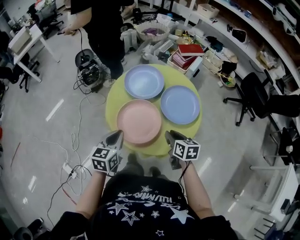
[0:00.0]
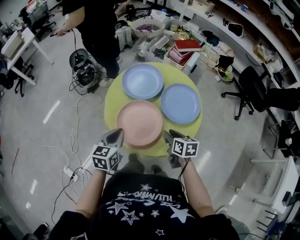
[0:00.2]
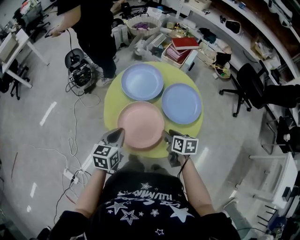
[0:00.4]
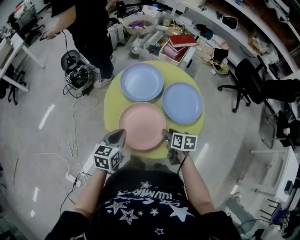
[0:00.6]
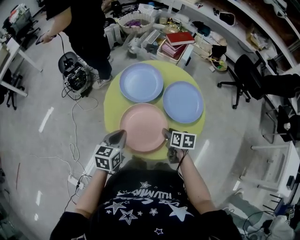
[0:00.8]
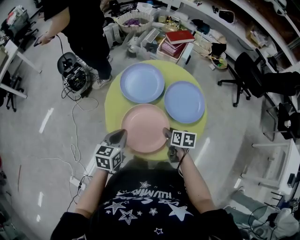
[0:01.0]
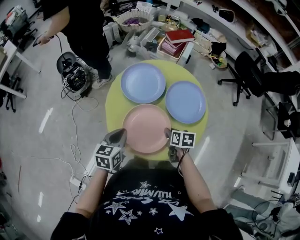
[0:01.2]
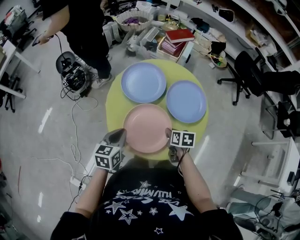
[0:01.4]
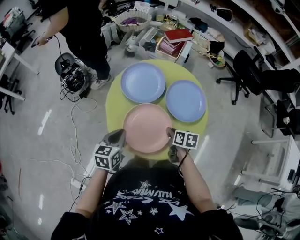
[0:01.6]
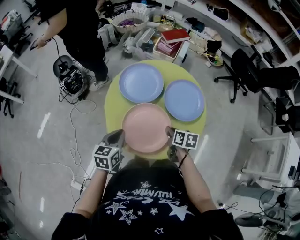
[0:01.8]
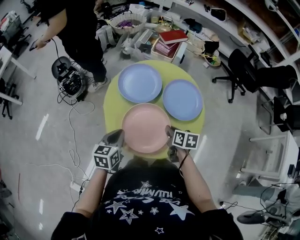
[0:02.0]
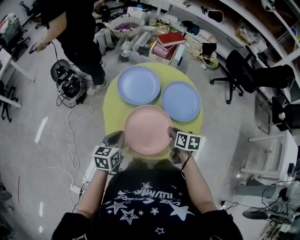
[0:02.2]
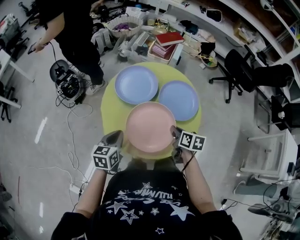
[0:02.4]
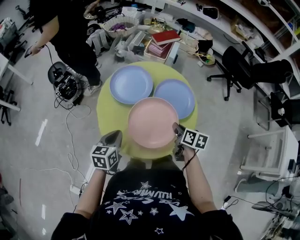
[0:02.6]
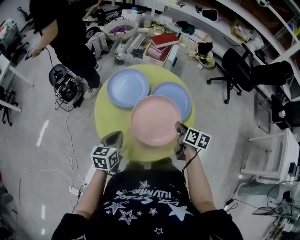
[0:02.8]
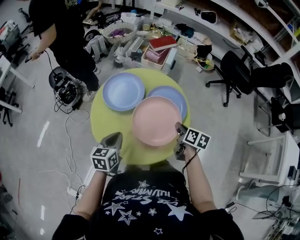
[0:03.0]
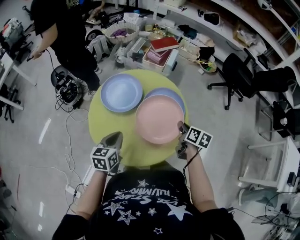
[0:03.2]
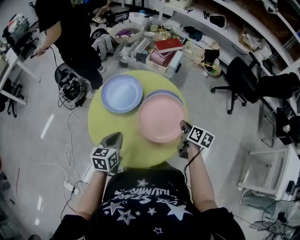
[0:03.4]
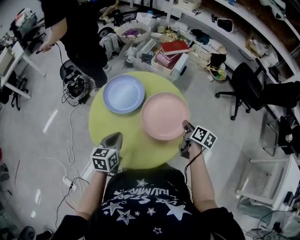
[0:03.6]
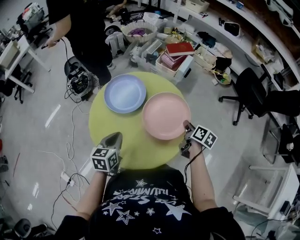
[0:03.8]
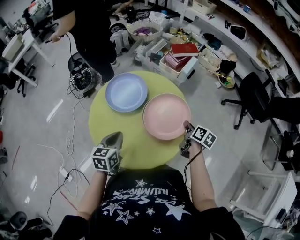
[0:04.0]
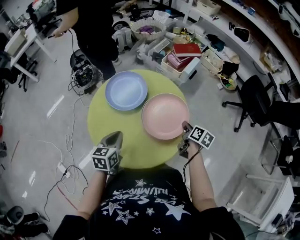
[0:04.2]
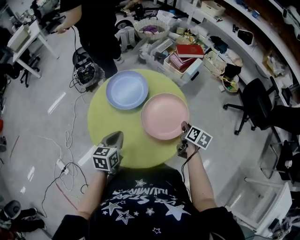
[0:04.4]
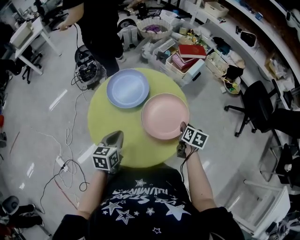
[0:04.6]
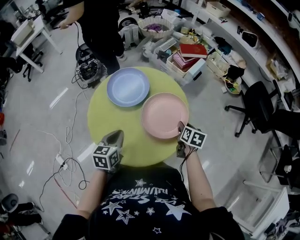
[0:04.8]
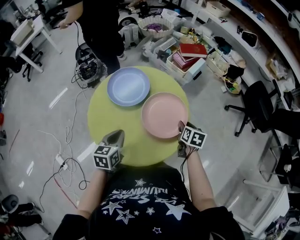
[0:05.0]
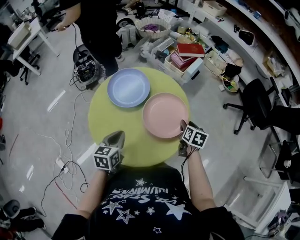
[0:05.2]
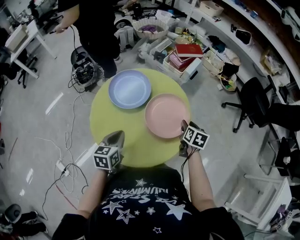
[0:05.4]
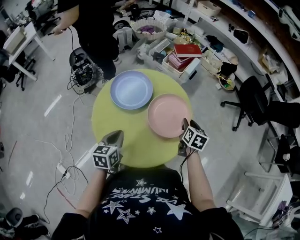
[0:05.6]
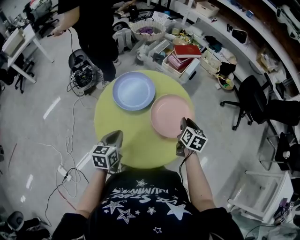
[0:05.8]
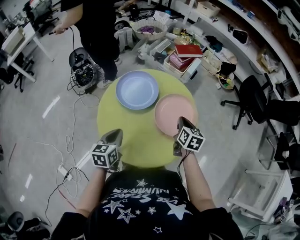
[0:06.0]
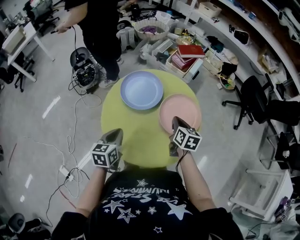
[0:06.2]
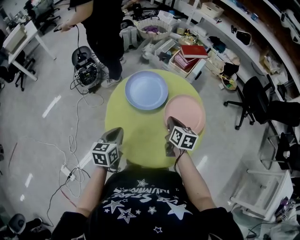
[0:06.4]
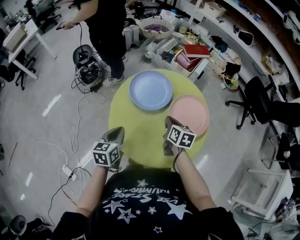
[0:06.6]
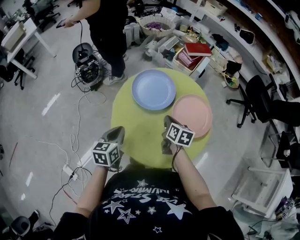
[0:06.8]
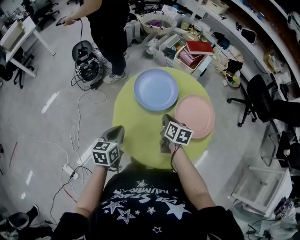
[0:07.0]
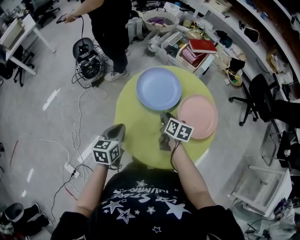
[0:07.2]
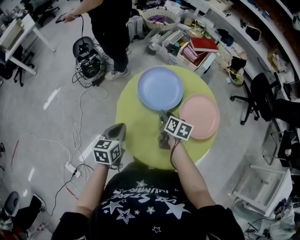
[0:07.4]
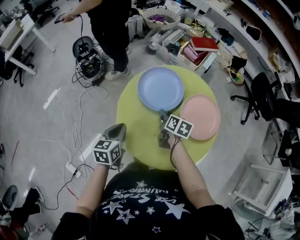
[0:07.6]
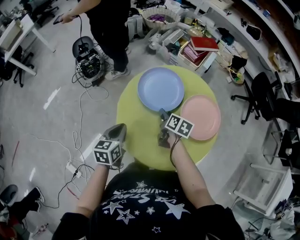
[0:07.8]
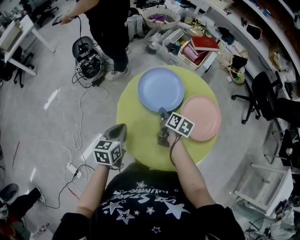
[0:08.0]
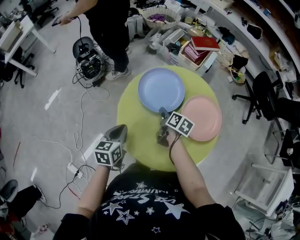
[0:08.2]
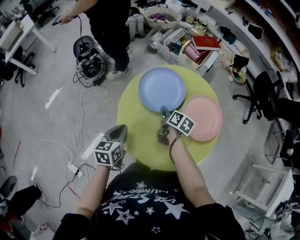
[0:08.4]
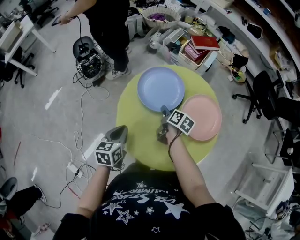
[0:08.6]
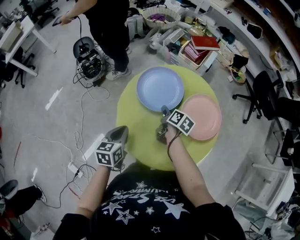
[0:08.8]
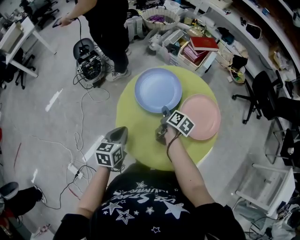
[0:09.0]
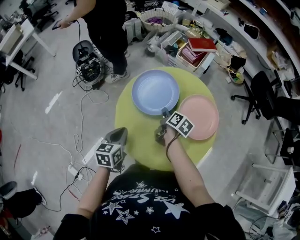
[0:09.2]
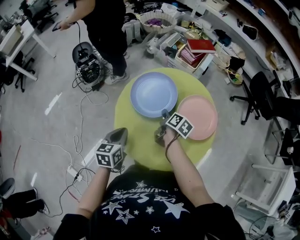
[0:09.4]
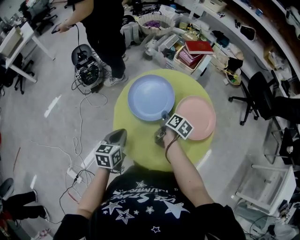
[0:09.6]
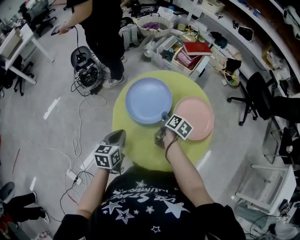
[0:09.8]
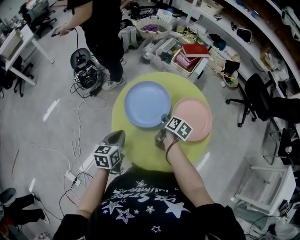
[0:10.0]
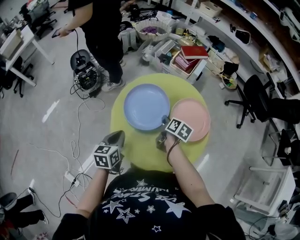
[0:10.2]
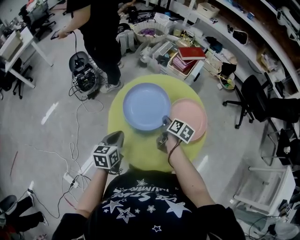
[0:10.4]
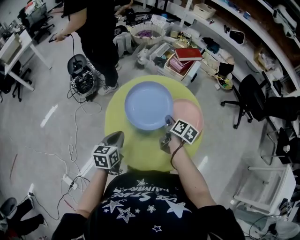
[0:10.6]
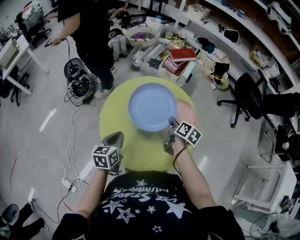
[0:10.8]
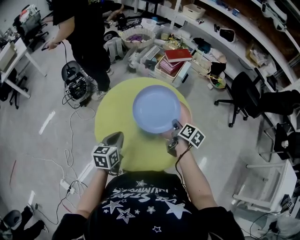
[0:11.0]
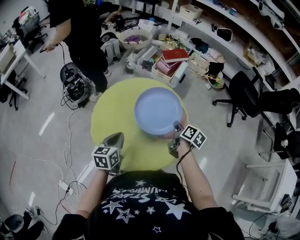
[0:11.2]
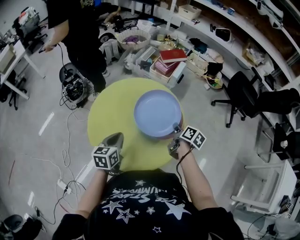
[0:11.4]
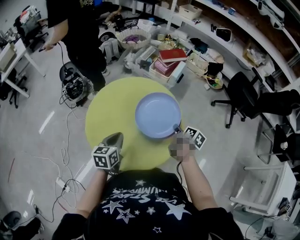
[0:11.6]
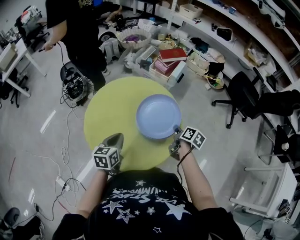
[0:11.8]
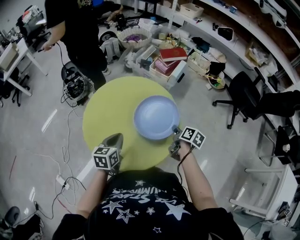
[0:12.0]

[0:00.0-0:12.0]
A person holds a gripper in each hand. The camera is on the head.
0:00.0 to 0:01.6: The left gripper travels forward and downward by approximately 10 cm; the right gripper moves downward, approximately 10 cm, and turns by about 20 degrees.
0:01.6 to 0:03.0: The right gripper heads to the right and upward, covering about 15 cm. The left gripper shifts approximately 10 cm to the right.
0:03.0 to 0:04.4: The right gripper travels forward and to the right by approximately 15 cm, while the left gripper travels to the right by roughly 5 cm.
0:04.4 to 0:06.0: The right gripper goes approximately 10 cm to the left and upward, and opens, then closes once more. Meanwhile the left gripper shifts approximately 10 cm to the left.
0:06.0 to 0:07.6: The left gripper travels to the left by some 10 cm. Meanwhile the right gripper shifts approximately 20 cm to the left, turns by approximately 20 degrees, and opens its fingers.
0:07.6 to 0:09.0: The grippers move only a little.
0:09.0 to 0:10.4: The right gripper moves to the right, about 5 cm.
0:10.4 to 0:12.0: The two grippers go about 20 cm to the right.

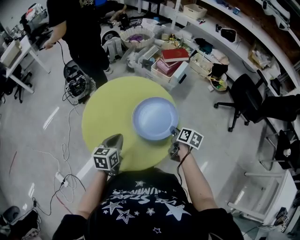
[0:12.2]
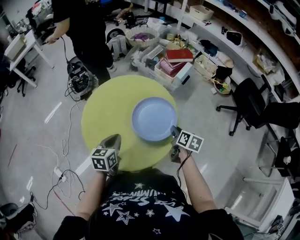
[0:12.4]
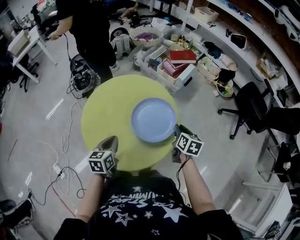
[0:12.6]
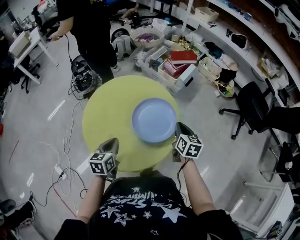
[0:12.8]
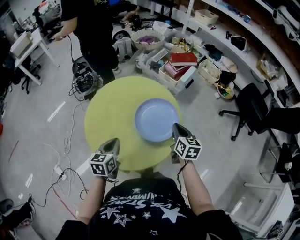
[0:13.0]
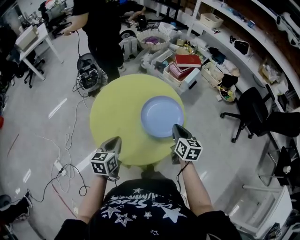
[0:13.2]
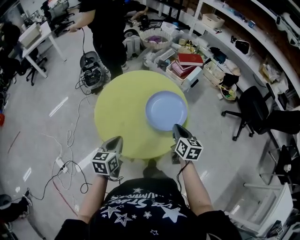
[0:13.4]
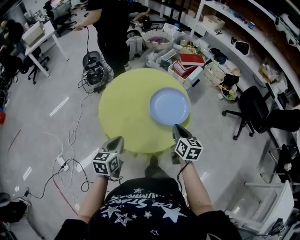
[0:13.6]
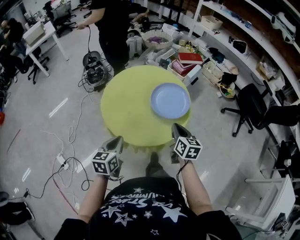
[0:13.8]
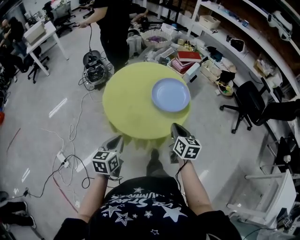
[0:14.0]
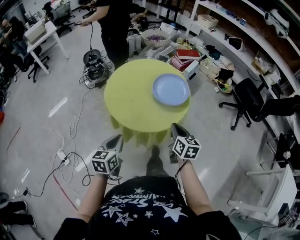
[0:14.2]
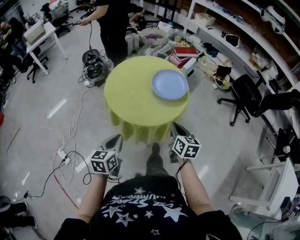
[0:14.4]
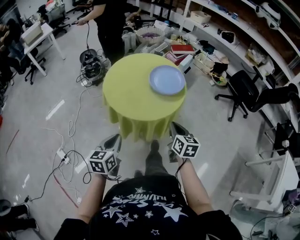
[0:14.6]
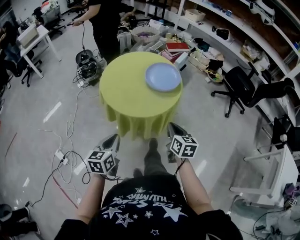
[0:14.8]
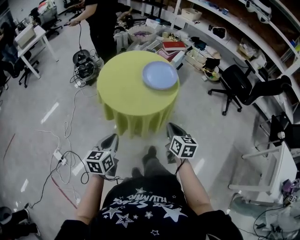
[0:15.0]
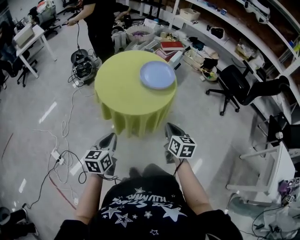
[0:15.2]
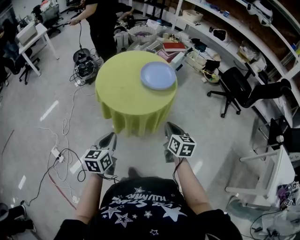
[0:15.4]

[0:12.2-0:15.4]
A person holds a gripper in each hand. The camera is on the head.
0:12.2 to 0:13.8: The left gripper moves backward and to the left, approximately 20 cm, while the right gripper goes some 20 cm backward, to the left and upward, and swivels approximately 40 degrees.
0:13.8 to 0:15.4: The two grippers go some 20 cm backward.

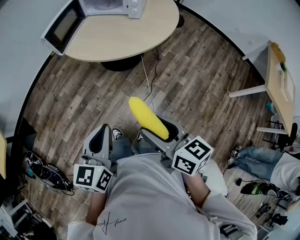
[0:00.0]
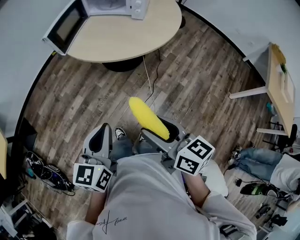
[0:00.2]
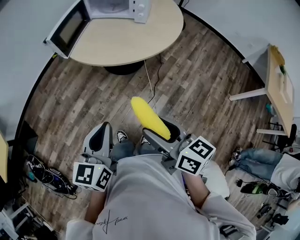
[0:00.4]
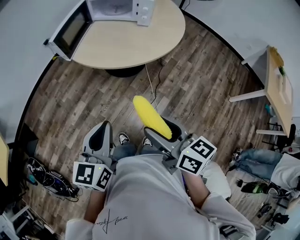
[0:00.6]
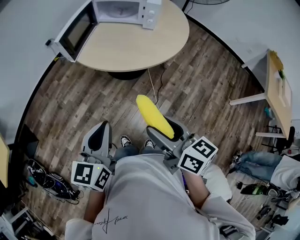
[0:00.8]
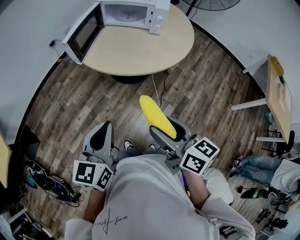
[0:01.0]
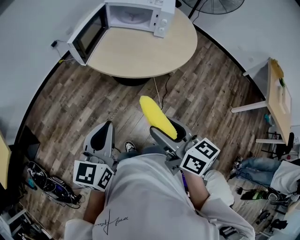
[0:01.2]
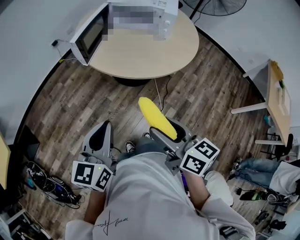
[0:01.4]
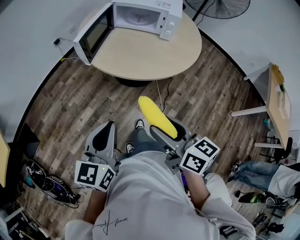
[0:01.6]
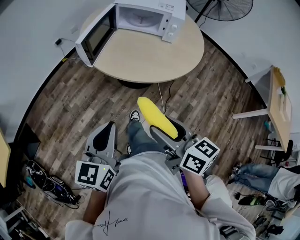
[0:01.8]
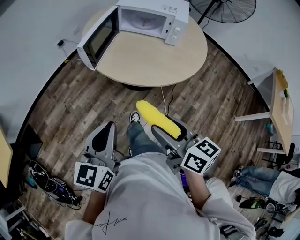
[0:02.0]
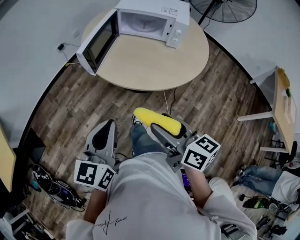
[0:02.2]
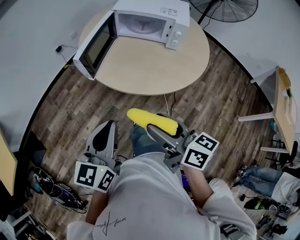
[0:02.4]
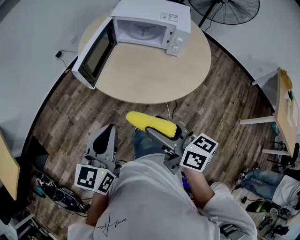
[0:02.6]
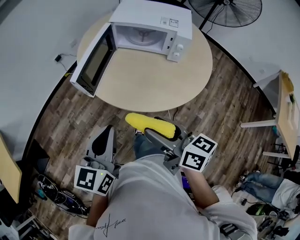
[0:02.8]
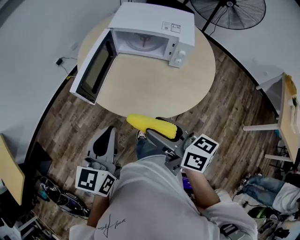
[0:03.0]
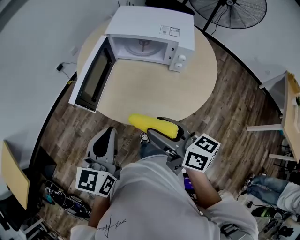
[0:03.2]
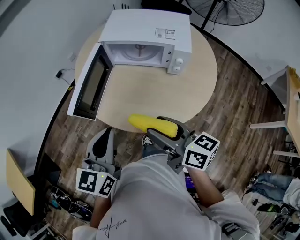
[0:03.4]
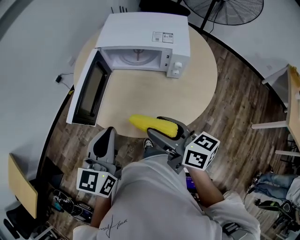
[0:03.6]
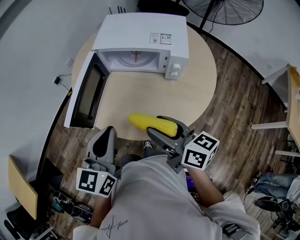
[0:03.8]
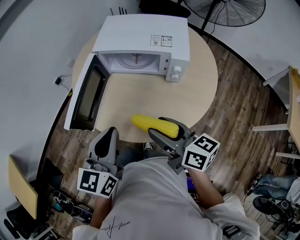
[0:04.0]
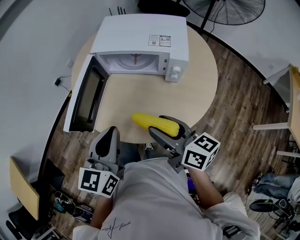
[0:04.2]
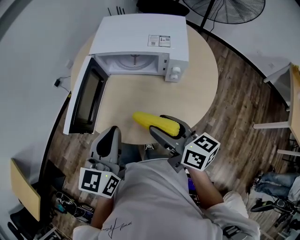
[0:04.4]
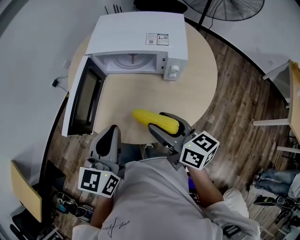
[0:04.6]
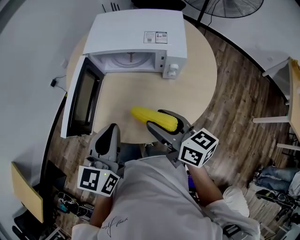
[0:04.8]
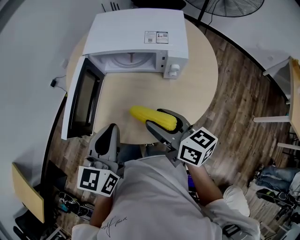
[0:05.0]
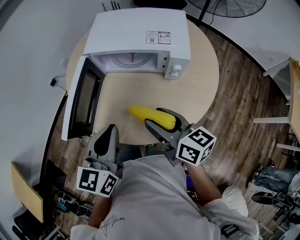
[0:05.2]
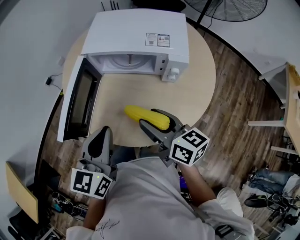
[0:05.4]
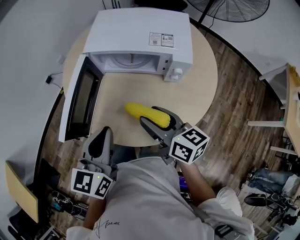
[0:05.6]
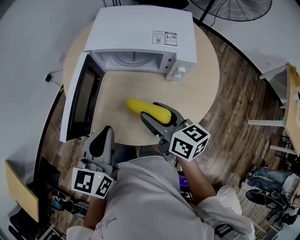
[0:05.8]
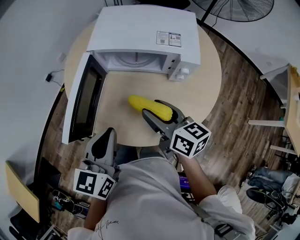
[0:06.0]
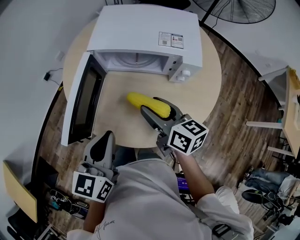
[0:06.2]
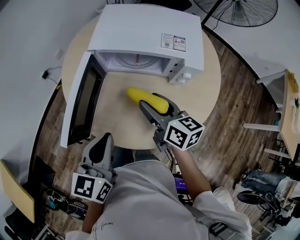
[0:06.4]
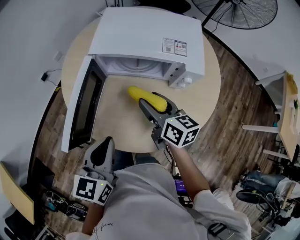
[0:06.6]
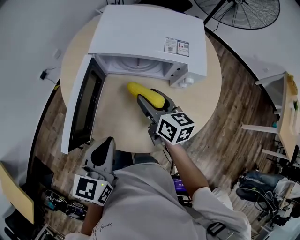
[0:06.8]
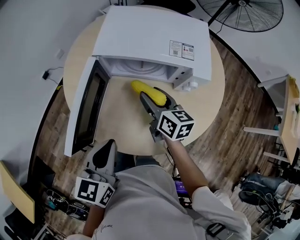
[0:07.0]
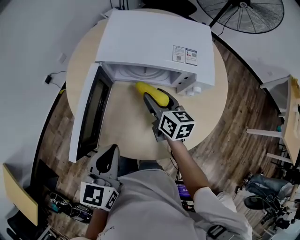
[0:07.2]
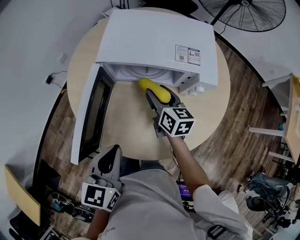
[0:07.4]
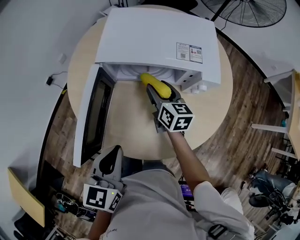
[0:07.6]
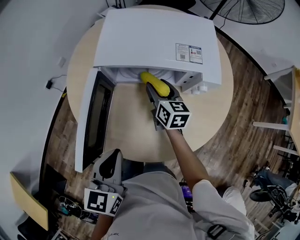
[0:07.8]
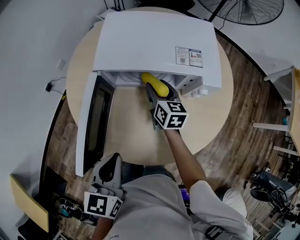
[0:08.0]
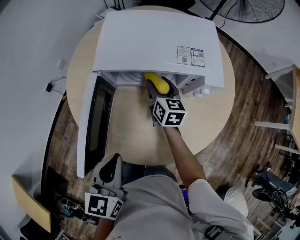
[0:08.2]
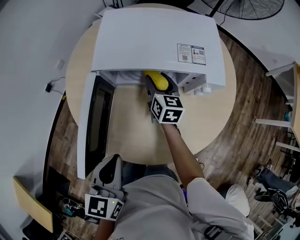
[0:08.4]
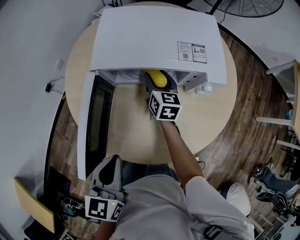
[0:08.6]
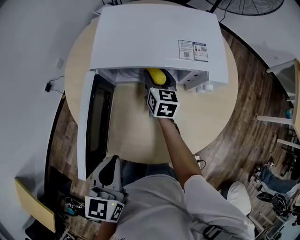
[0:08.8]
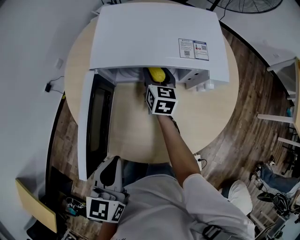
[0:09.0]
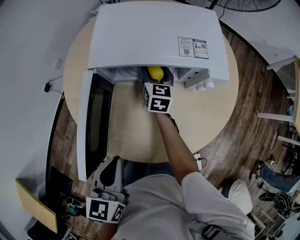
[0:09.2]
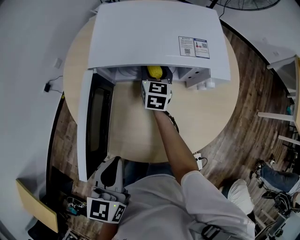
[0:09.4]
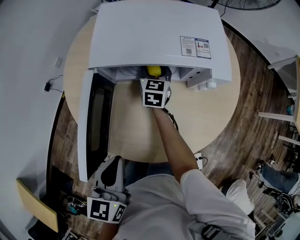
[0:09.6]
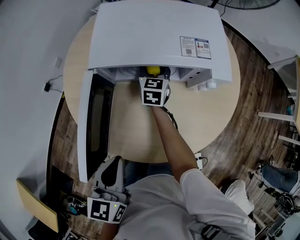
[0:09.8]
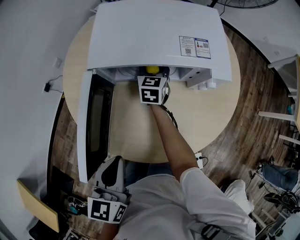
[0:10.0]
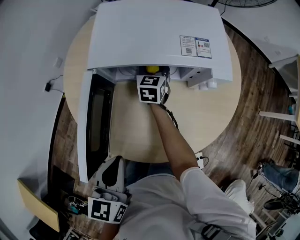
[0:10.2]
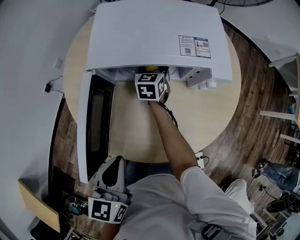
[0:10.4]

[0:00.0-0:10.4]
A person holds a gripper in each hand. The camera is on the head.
0:00.0 to 0:01.4: The grippers both shift to the left and forward by roughly 20 cm.
0:01.4 to 0:03.0: Both grippers travel together forward, roughly 25 cm.
0:03.0 to 0:04.4: Both grippers move forward and to the right, approximately 15 cm.
0:04.4 to 0:06.0: The left gripper ends up some 5 cm from where it was; the right gripper heads forward, covering some 10 cm.
0:06.0 to 0:07.4: The left gripper ends up roughly 5 cm from where it was, while the right gripper travels forward and downward by roughly 20 cm.
0:07.4 to 0:09.0: The right gripper travels forward and downward by approximately 10 cm.
0:09.0 to 0:10.4: The right gripper shifts by some 5 cm, and turns by roughly 20 degrees.
